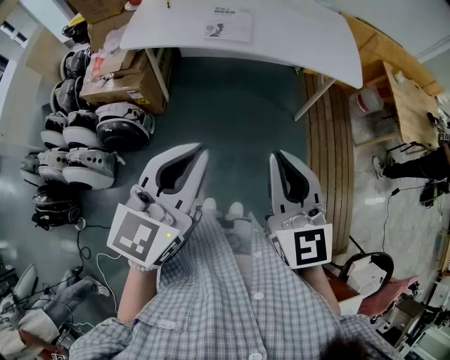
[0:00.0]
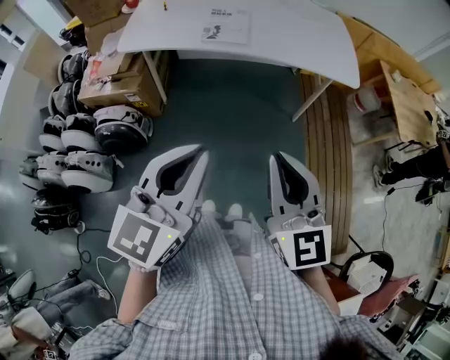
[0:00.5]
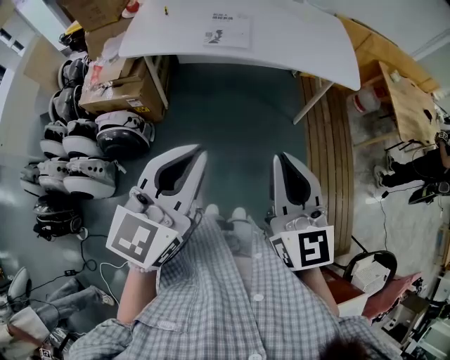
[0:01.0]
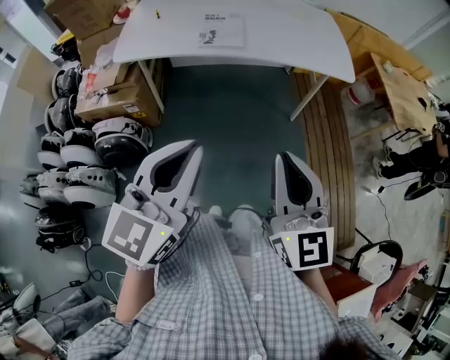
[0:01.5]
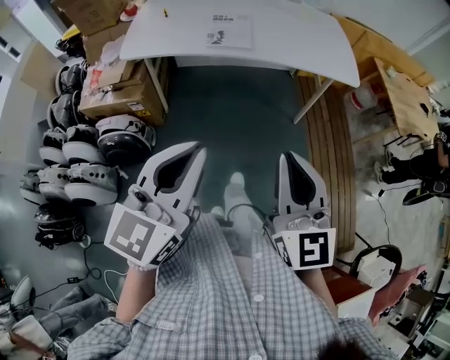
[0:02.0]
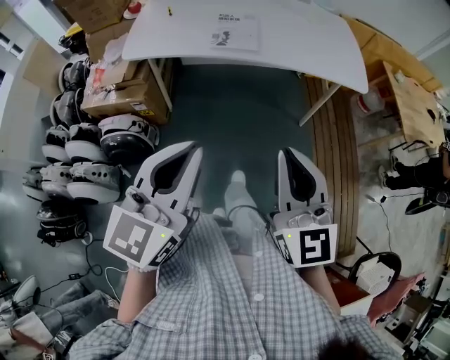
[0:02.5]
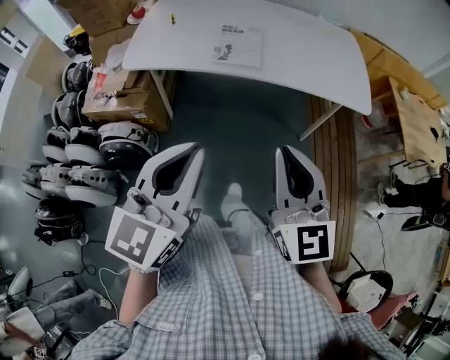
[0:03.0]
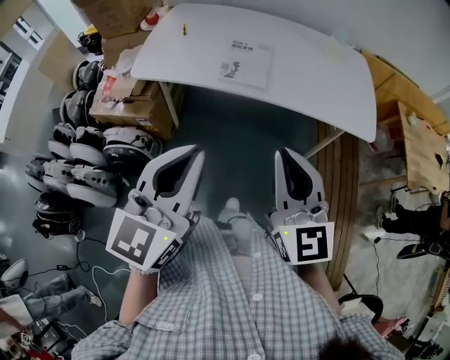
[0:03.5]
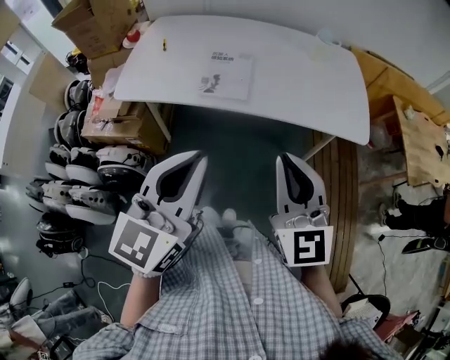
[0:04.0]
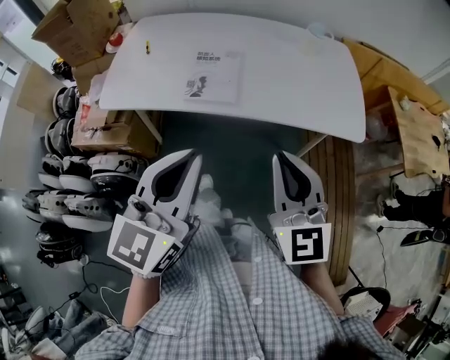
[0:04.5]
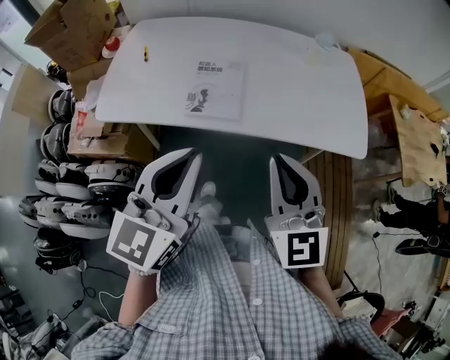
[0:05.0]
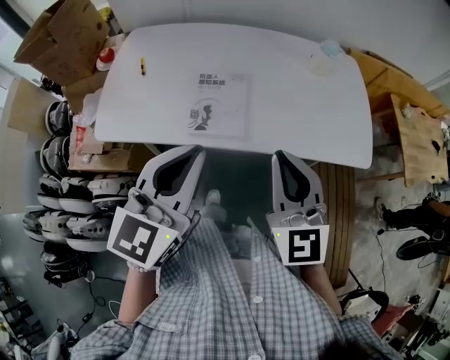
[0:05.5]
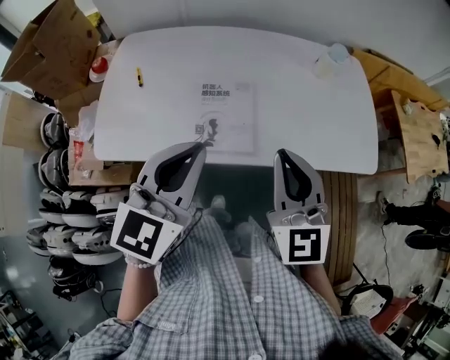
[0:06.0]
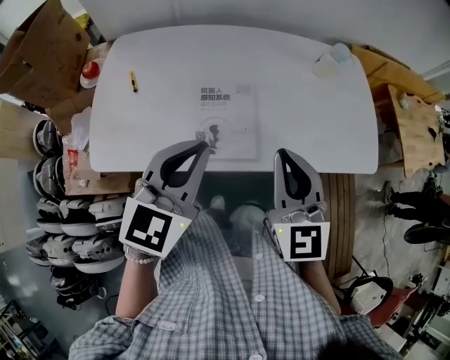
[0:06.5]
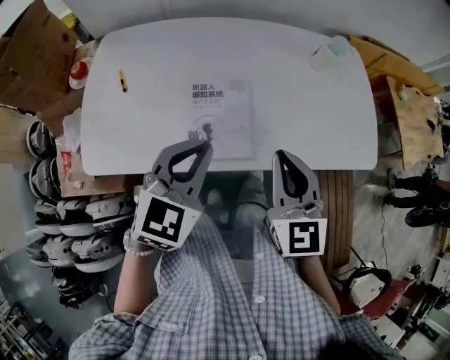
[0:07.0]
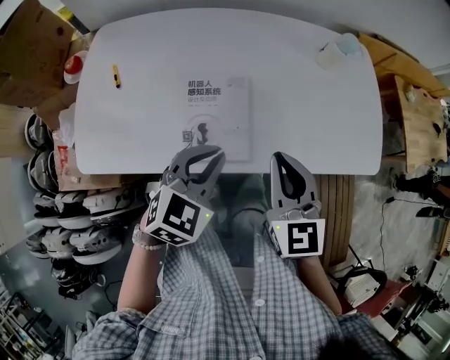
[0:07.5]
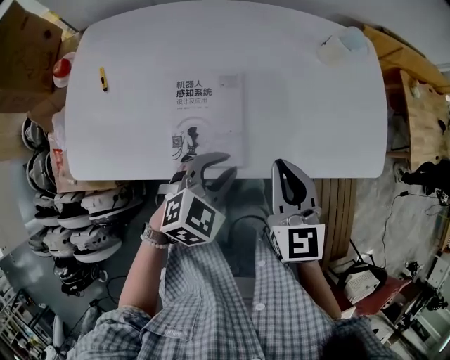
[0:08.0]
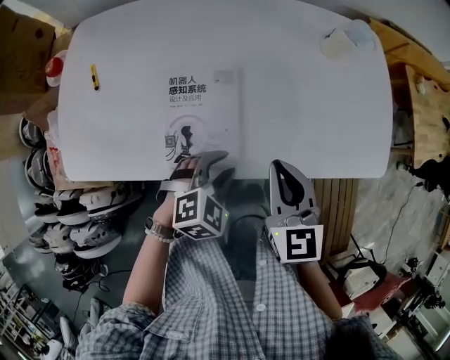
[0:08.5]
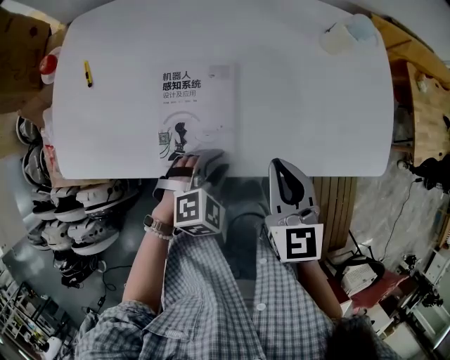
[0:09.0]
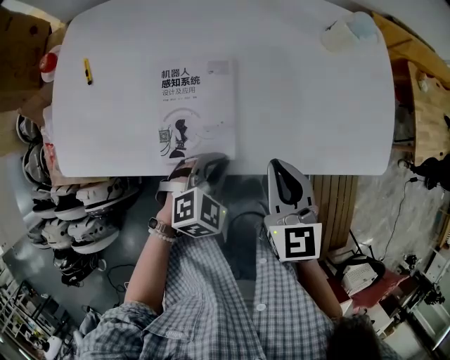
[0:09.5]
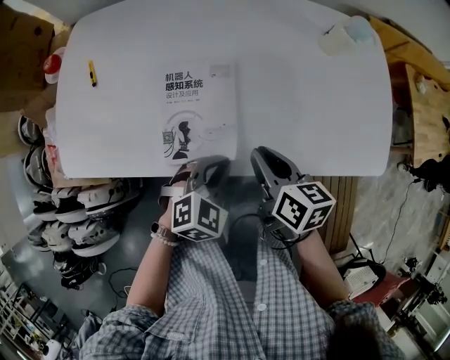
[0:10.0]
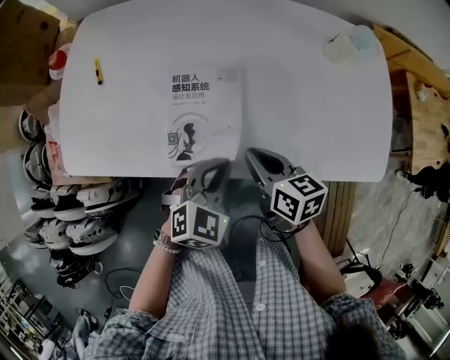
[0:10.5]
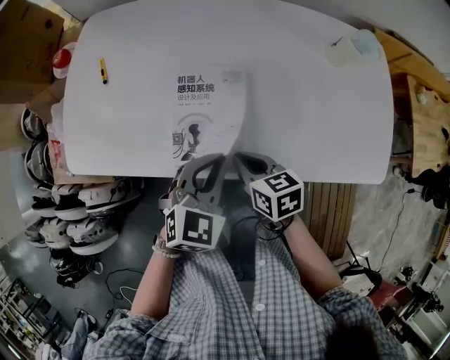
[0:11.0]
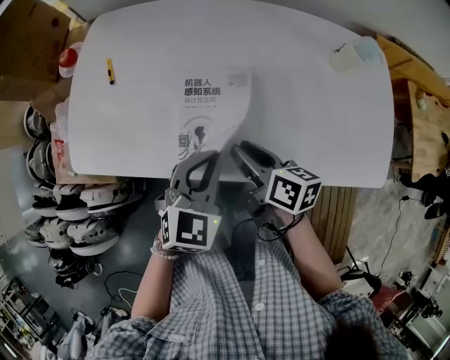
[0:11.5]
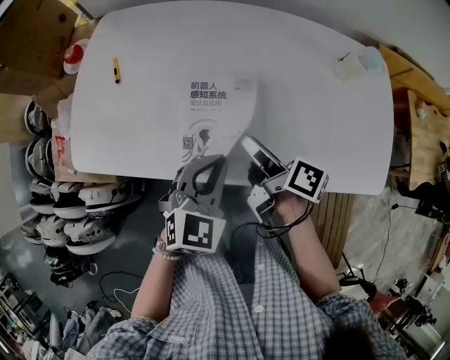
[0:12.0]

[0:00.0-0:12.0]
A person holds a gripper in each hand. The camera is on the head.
0:00.0 to 0:02.0: The grippers make only small movements.
0:02.0 to 0:04.0: Both grippers move forward, approximately 20 cm.
0:04.0 to 0:06.0: Both grippers move forward, some 25 cm.
0:06.0 to 0:08.0: The right gripper goes approximately 15 cm downward and forward, and changes its angle by some 20 degrees; the left gripper moves downward and to the right, some 20 cm, and changes its angle by roughly 40 degrees.
0:08.0 to 0:10.0: The left gripper moves downward, roughly 5 cm. Meanwhile the right gripper shifts approximately 10 cm downward, and turns by some 40 degrees.
0:10.0 to 0:12.0: The left gripper shifts some 10 cm upward and to the left, and rotates about 20 degrees. Meanwhile the right gripper moves forward and to the left, approximately 10 cm, rotates roughly 30 degrees, and opens.

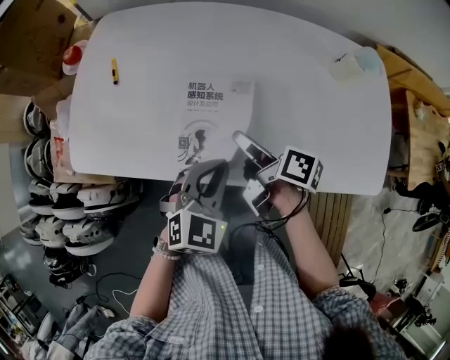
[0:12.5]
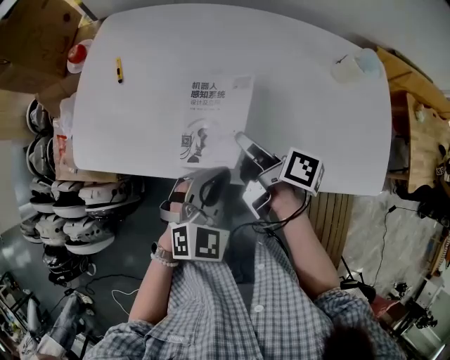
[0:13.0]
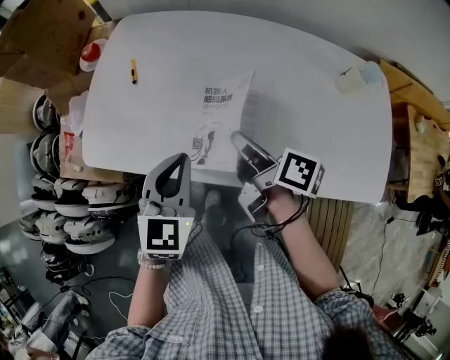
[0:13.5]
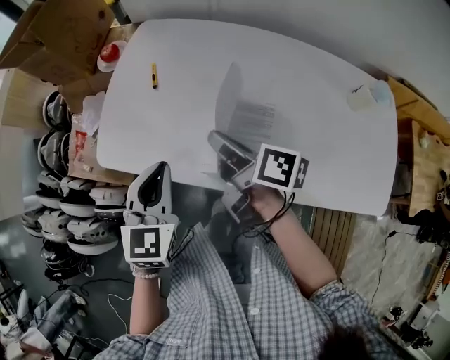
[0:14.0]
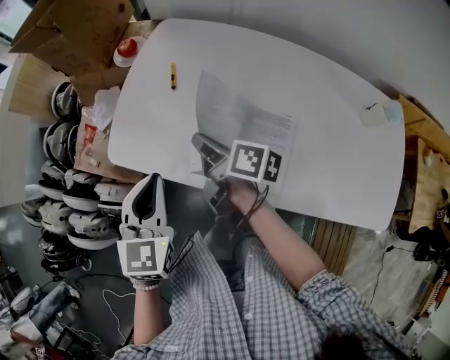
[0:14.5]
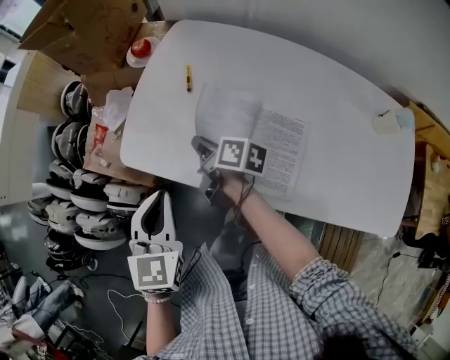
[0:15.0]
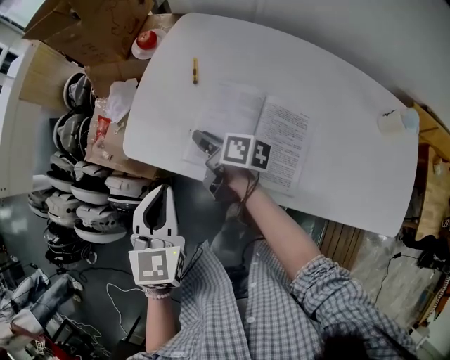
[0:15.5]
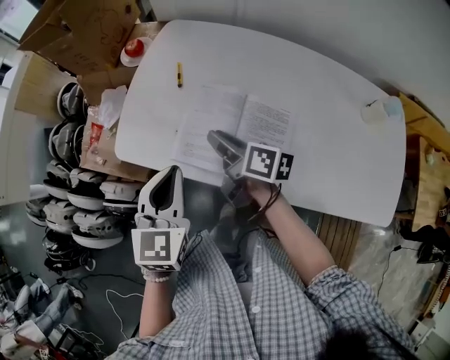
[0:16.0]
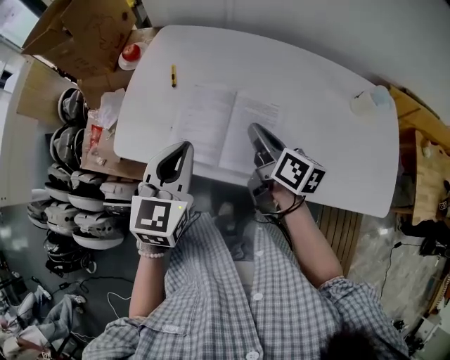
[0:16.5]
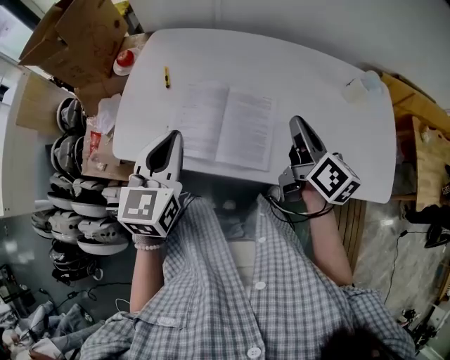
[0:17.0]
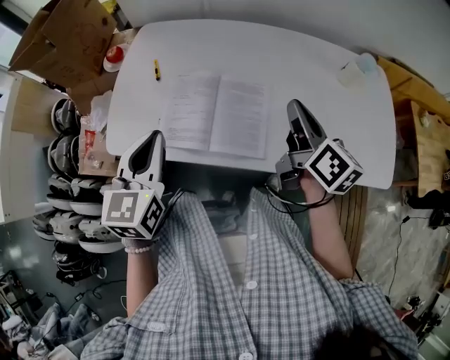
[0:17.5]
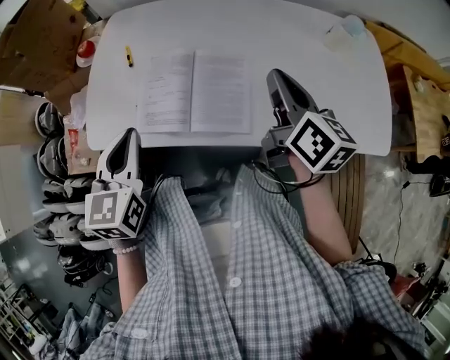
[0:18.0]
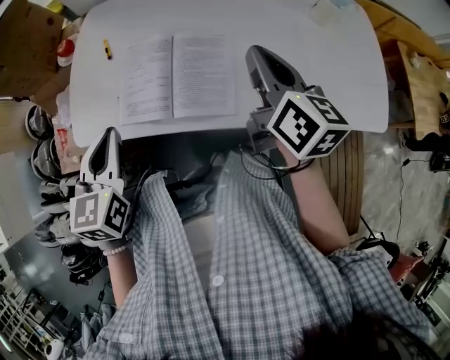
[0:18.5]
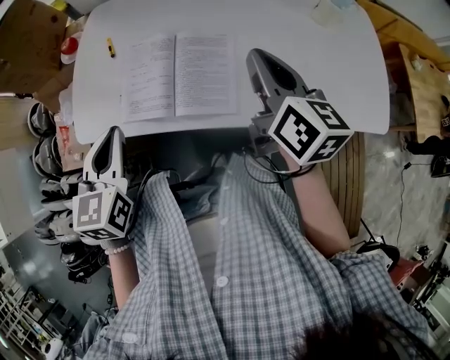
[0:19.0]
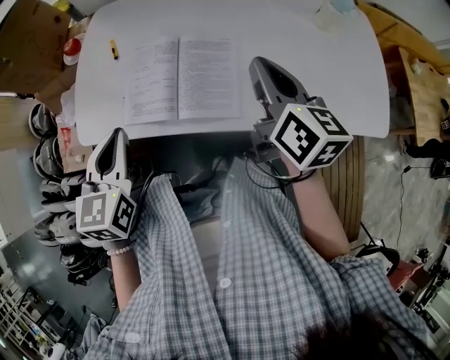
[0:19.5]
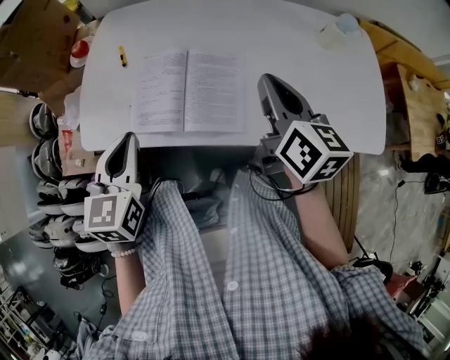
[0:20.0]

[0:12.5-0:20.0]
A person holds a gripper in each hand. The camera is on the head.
0:12.5 to 0:14.5: The right gripper ends up roughly 25 cm from where it was, and closes up, while the left gripper moves about 25 cm, and turns by about 40 degrees.
0:14.5 to 0:16.5: The left gripper heads to the right, covering some 5 cm. The right gripper travels to the right and backward by roughly 15 cm, and changes its angle by roughly 30 degrees.
0:16.5 to 0:18.0: The right gripper shifts approximately 15 cm to the right and upward, and swivels some 20 degrees.
0:18.0 to 0:20.0: The grippers move only a little.

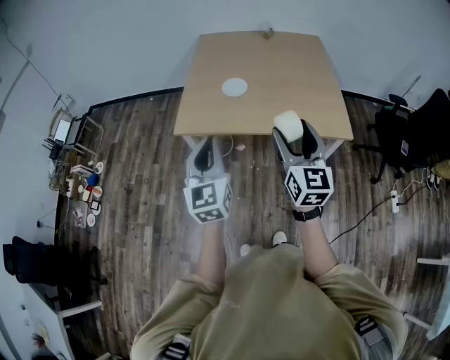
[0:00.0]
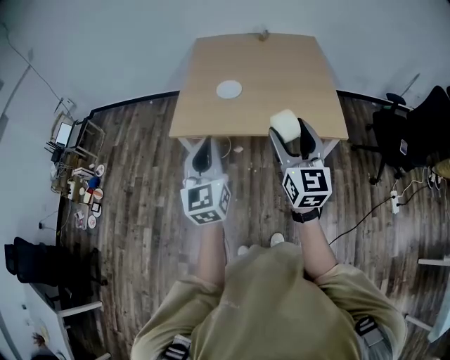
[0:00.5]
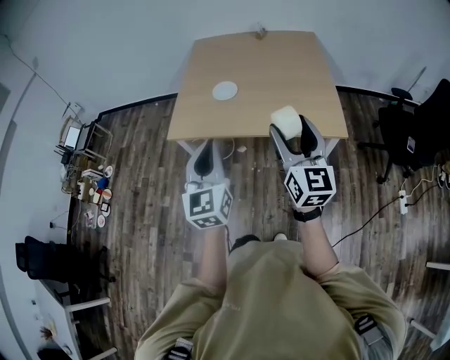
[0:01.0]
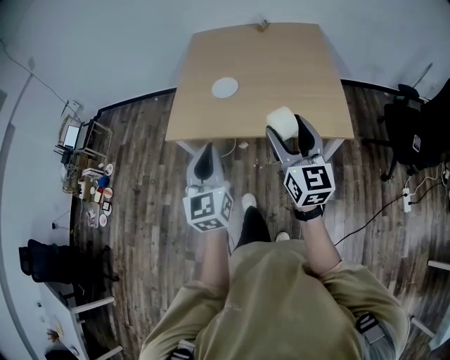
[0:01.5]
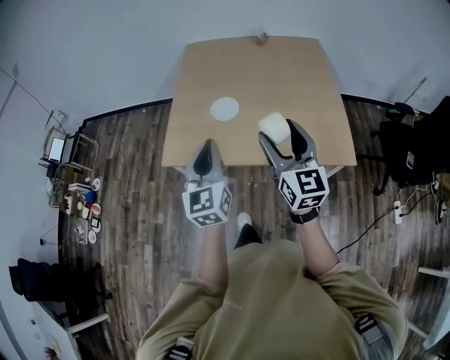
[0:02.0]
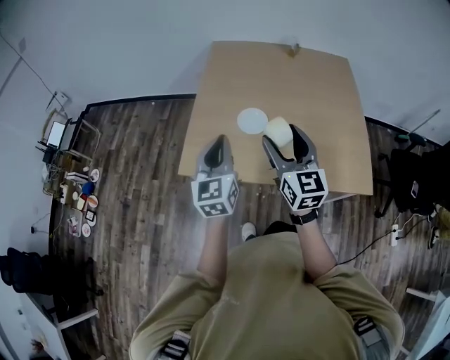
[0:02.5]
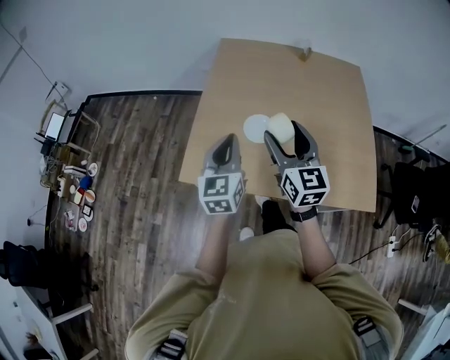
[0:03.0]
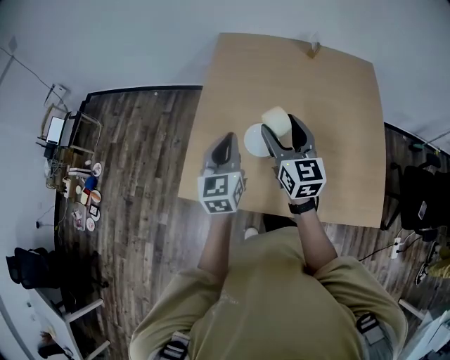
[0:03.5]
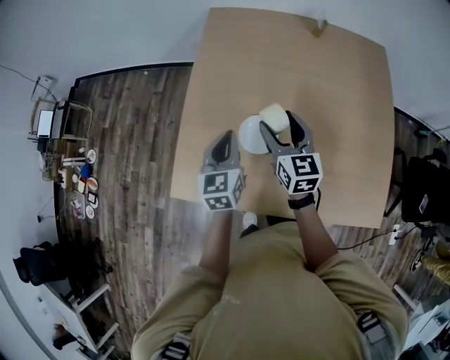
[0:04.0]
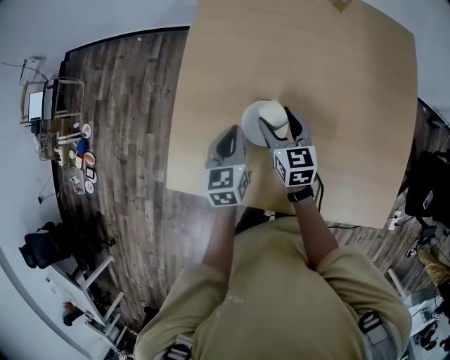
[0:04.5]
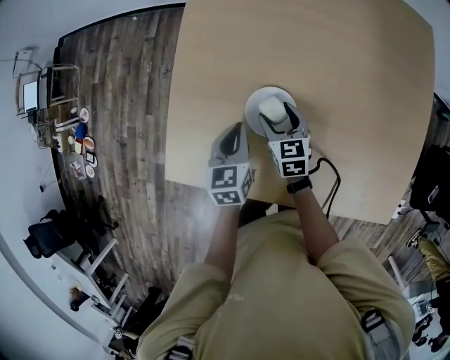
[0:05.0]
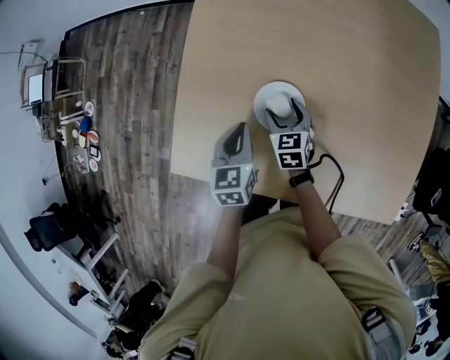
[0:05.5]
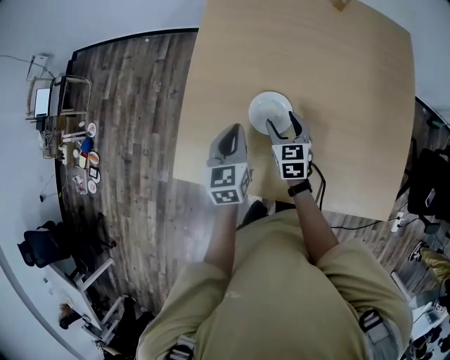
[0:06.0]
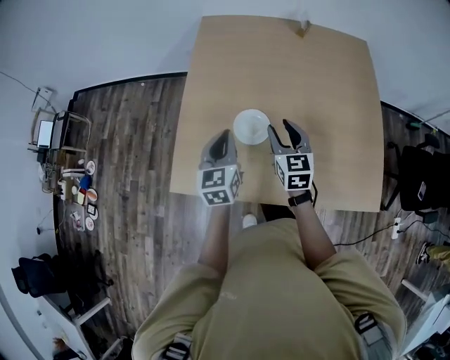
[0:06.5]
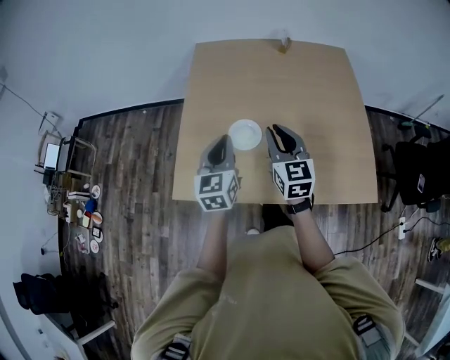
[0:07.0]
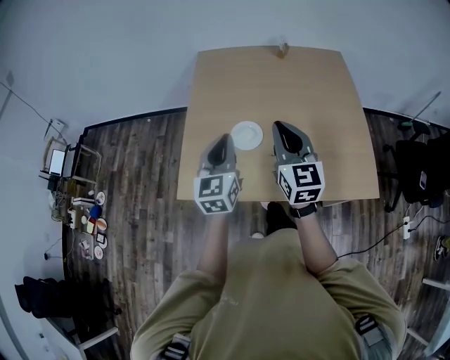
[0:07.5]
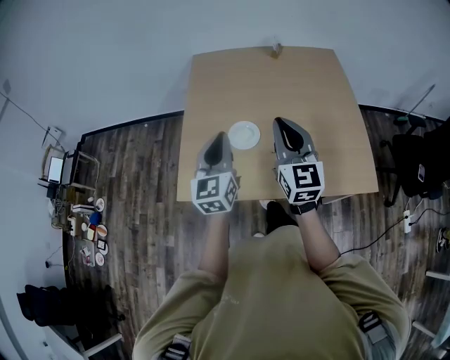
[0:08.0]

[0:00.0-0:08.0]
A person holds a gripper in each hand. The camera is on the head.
0:00.0 to 0:02.0: The right gripper travels forward by roughly 20 cm. Meanwhile the left gripper moves forward and to the right, roughly 20 cm.
0:02.0 to 0:04.0: The right gripper is displaced forward by some 40 cm, and swivels about 20 degrees. Meanwhile the left gripper moves forward and downward, some 40 cm, and rotates about 20 degrees.
0:04.0 to 0:06.0: The right gripper shifts approximately 15 cm downward, and changes its angle by roughly 20 degrees. Meanwhile the left gripper shifts approximately 10 cm downward.
0:06.0 to 0:08.0: Both grippers move upward and backward, approximately 35 cm. The left gripper turns by roughly 30 degrees, while the right gripper angles its fingers upward, by about 40 degrees, and closes up.
